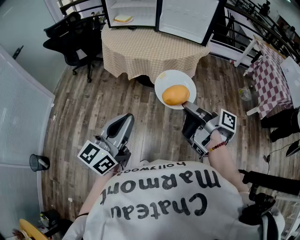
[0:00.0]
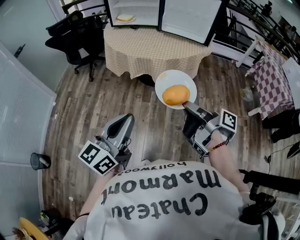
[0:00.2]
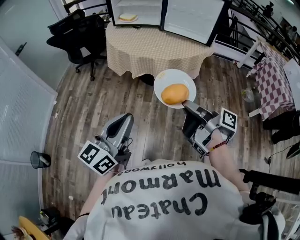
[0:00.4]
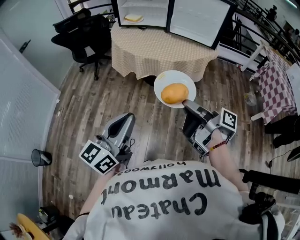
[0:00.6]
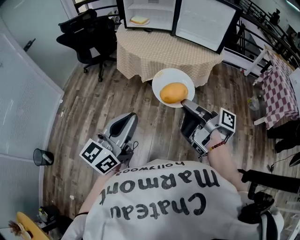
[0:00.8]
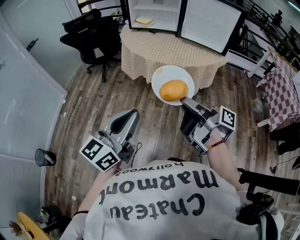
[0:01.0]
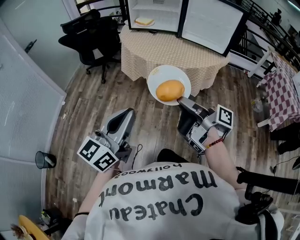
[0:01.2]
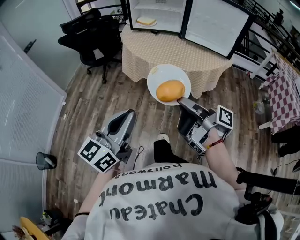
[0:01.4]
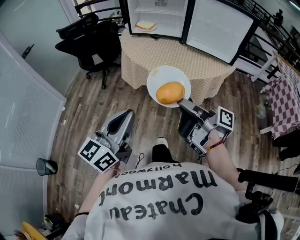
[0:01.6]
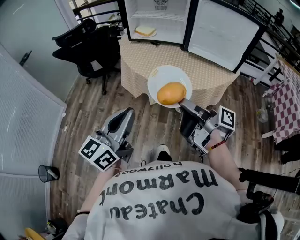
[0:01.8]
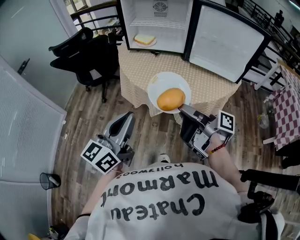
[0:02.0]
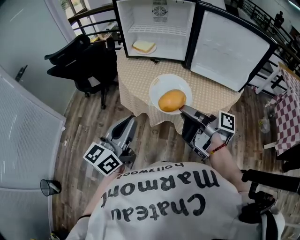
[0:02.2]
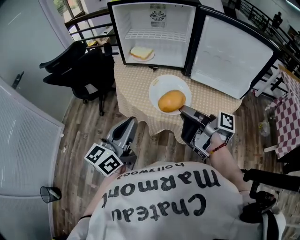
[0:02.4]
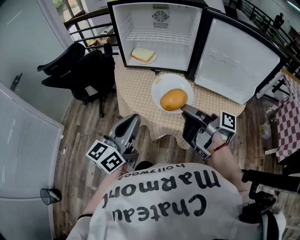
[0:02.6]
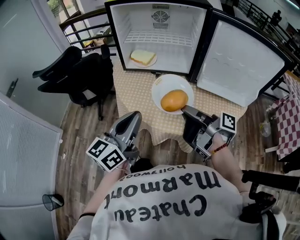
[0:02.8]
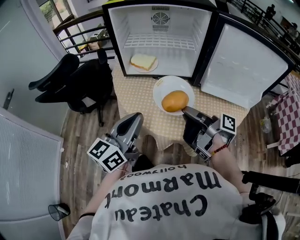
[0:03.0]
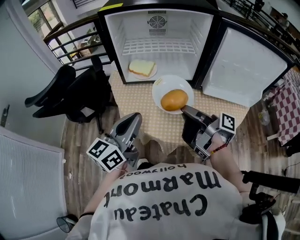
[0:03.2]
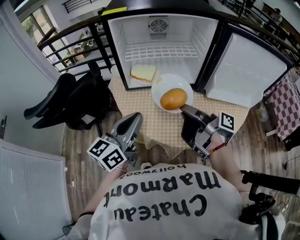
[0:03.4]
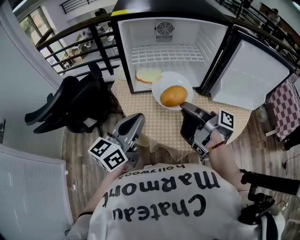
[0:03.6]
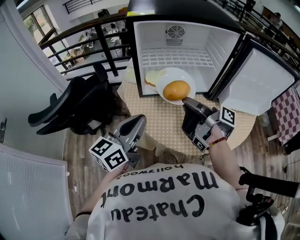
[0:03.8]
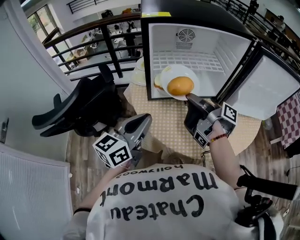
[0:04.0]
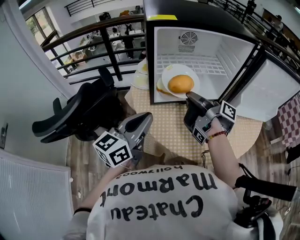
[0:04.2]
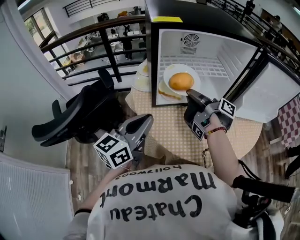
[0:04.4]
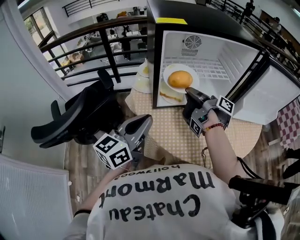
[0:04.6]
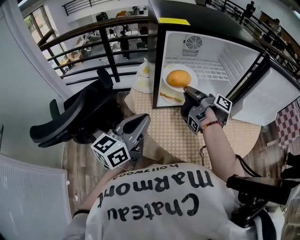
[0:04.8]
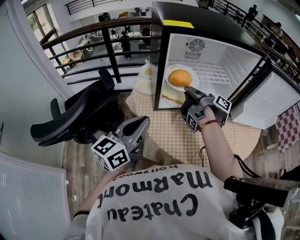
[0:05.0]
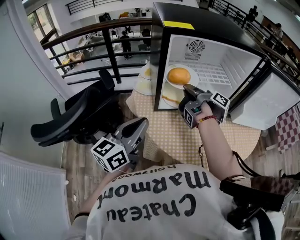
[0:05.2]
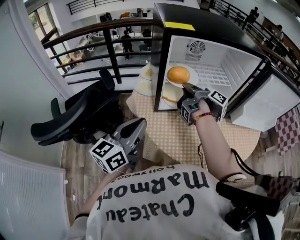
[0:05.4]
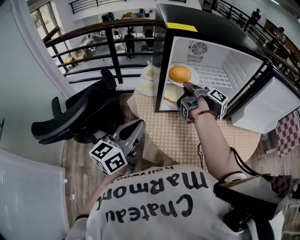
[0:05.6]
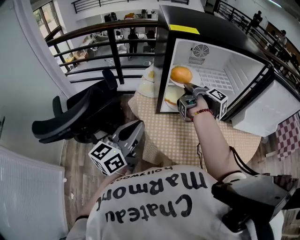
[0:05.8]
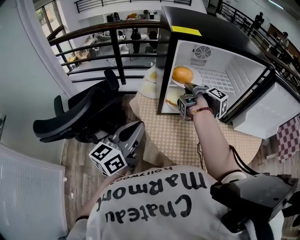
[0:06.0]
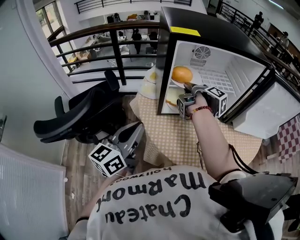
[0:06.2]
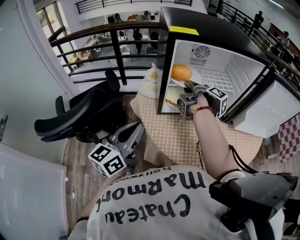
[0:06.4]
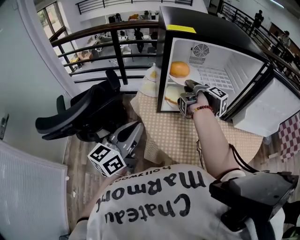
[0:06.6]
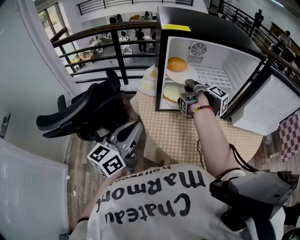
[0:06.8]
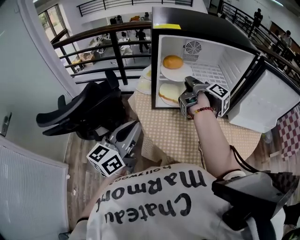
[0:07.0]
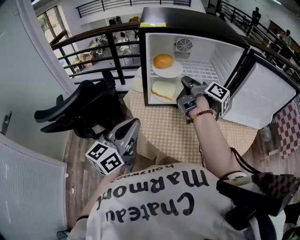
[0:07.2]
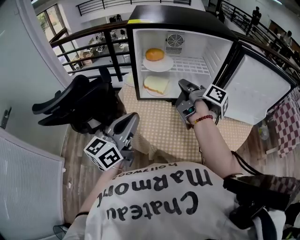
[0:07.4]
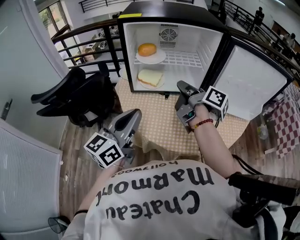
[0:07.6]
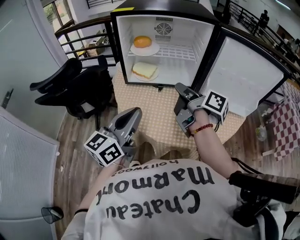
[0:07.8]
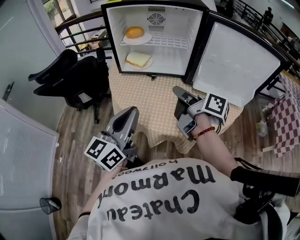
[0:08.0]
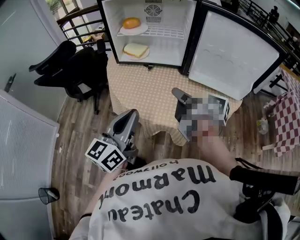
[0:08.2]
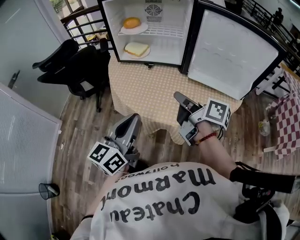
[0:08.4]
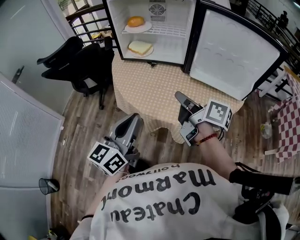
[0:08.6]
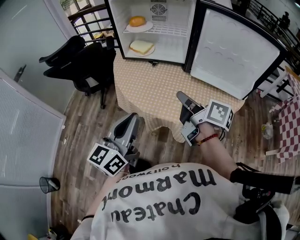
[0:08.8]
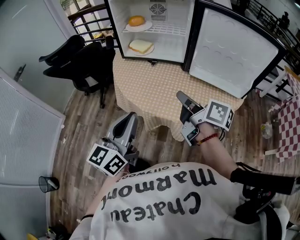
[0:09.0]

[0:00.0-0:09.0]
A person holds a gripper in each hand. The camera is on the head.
0:00.0 to 0:01.6: The left gripper changes place by roughly 15 cm.
0:01.6 to 0:03.0: The left gripper shifts by about 40 cm.
0:03.0 to 0:04.4: The left gripper moves approximately 25 cm.
0:04.4 to 0:06.0: The left gripper ends up about 5 cm from where it was.
0:06.0 to 0:07.6: The left gripper changes place by some 20 cm.
0:07.6 to 0:09.0: The left gripper ends up about 25 cm from where it was.

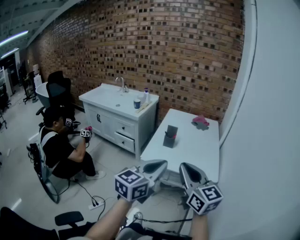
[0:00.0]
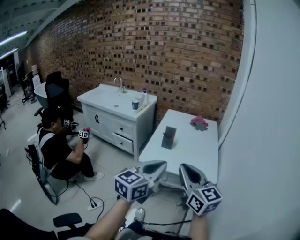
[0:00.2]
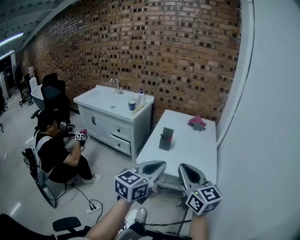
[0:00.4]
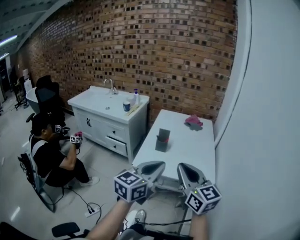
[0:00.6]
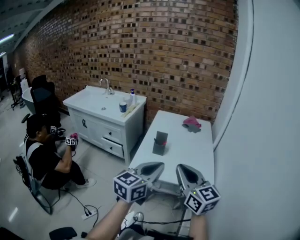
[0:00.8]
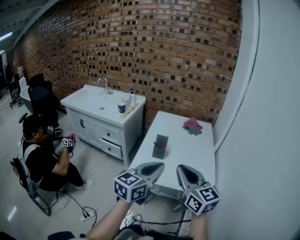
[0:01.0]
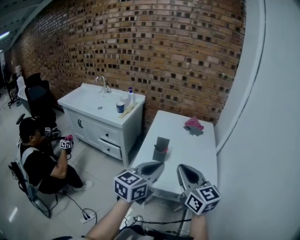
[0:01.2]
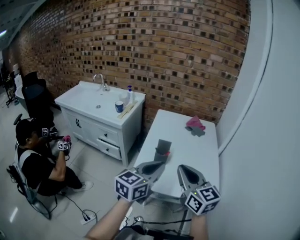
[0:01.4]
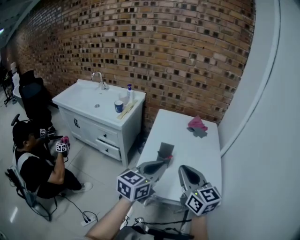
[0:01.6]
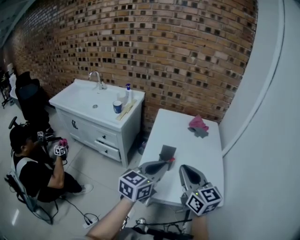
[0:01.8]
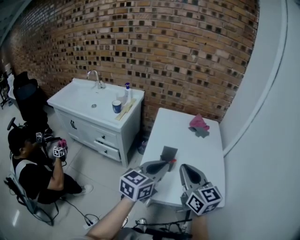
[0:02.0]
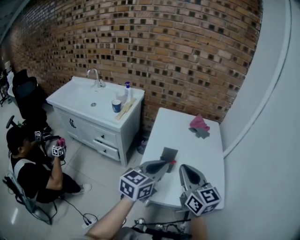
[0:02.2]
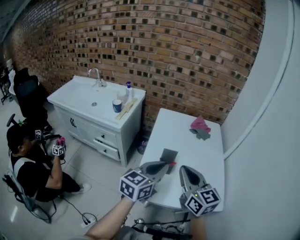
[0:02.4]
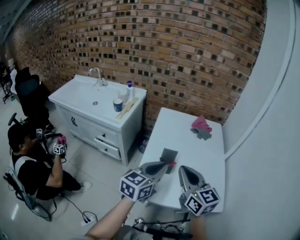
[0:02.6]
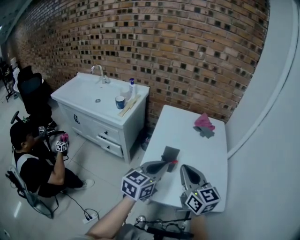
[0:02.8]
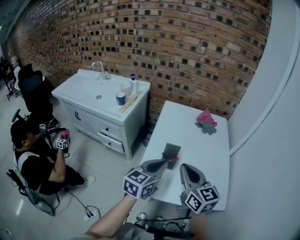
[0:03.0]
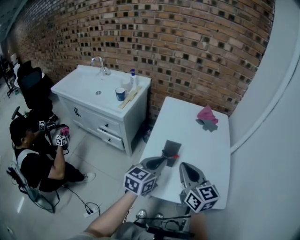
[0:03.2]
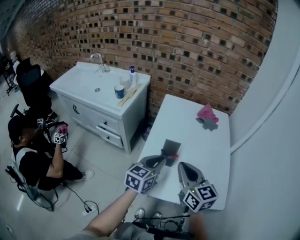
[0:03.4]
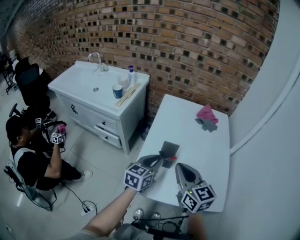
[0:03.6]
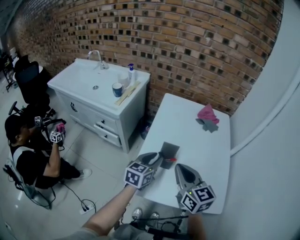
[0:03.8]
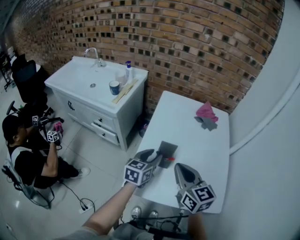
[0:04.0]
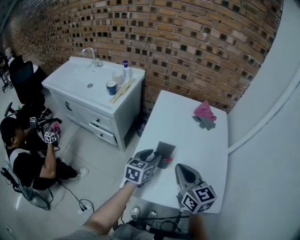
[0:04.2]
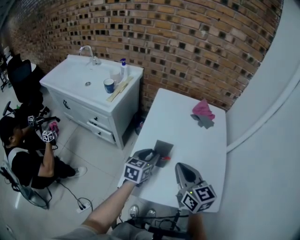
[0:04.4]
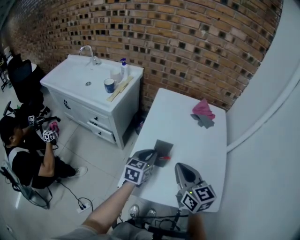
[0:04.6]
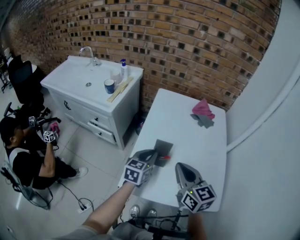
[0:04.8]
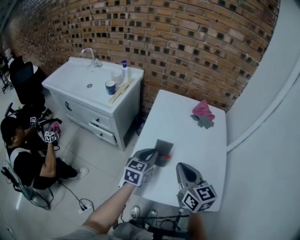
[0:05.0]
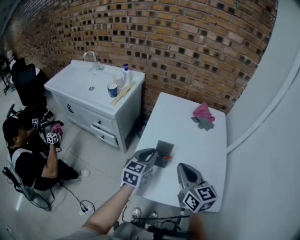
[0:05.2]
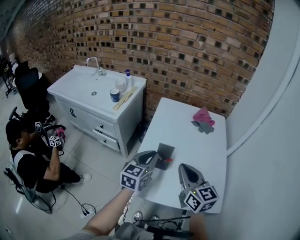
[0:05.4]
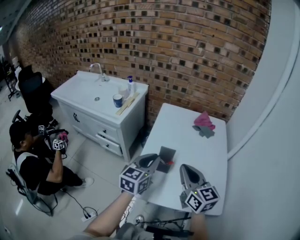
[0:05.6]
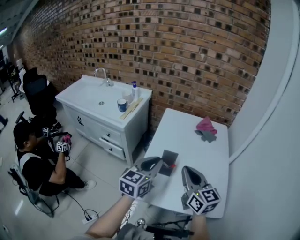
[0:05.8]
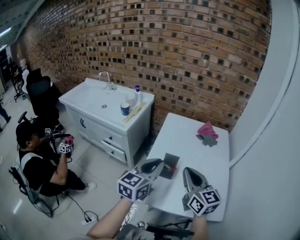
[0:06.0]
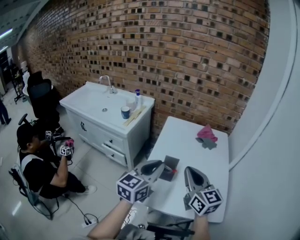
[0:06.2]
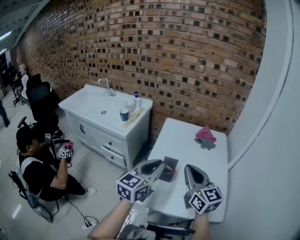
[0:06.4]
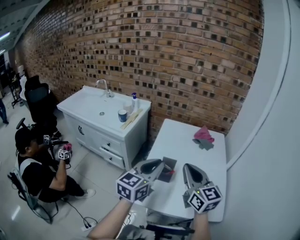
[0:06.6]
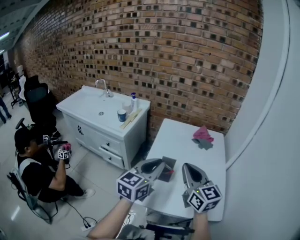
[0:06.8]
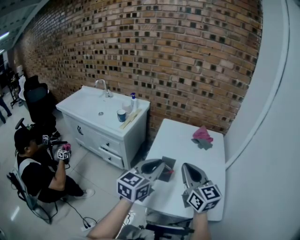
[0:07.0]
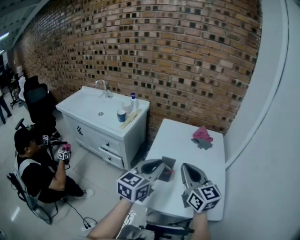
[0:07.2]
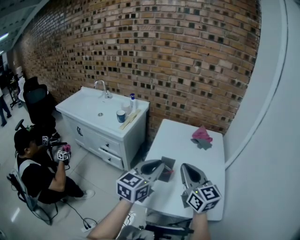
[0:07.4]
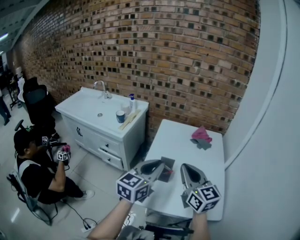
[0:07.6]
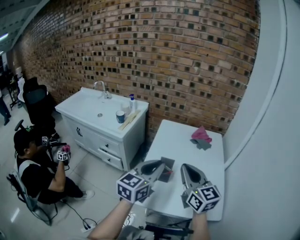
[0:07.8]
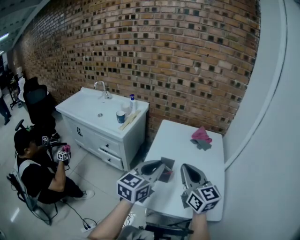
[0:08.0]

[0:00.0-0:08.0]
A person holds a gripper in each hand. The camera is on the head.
0:00.0 to 0:01.6: The two grippers go roughly 25 cm forward.
0:01.6 to 0:03.2: Both grippers move forward and downward, approximately 10 cm.
0:03.2 to 0:04.8: The right gripper ends up roughly 5 cm from where it was. Meanwhile the left gripper is displaced downward and forward by approximately 10 cm, and opens and closes again.
0:04.8 to 0:06.4: The left gripper goes roughly 20 cm upward and backward, and turns by approximately 20 degrees. Meanwhile the right gripper shifts roughly 10 cm upward.
0:06.4 to 0:08.0: The grippers stay close to where they were, moving slightly.

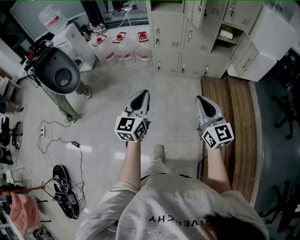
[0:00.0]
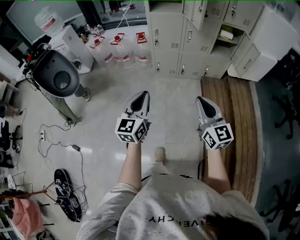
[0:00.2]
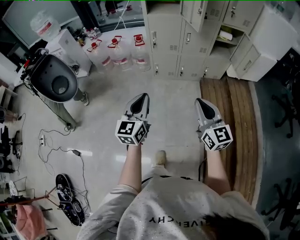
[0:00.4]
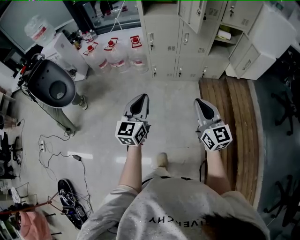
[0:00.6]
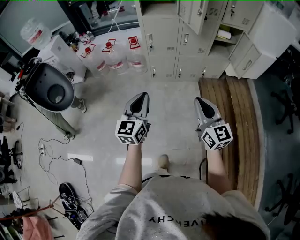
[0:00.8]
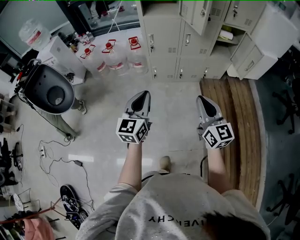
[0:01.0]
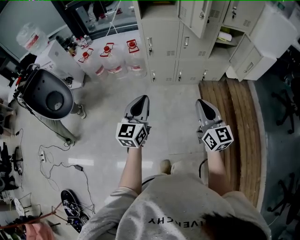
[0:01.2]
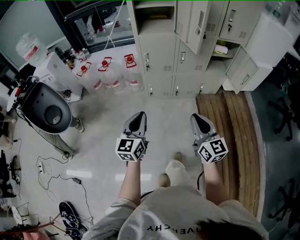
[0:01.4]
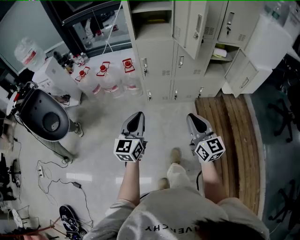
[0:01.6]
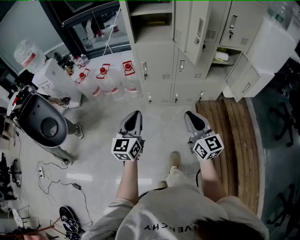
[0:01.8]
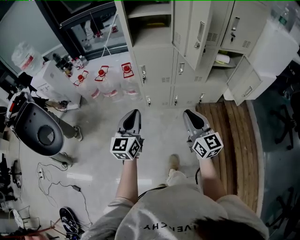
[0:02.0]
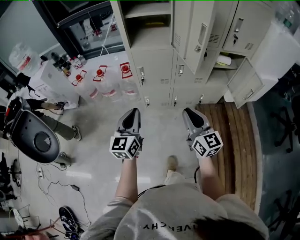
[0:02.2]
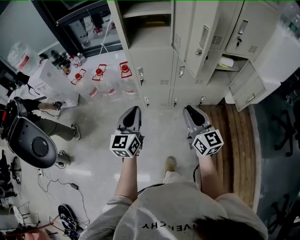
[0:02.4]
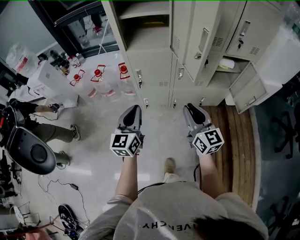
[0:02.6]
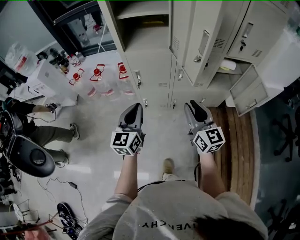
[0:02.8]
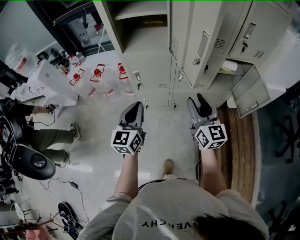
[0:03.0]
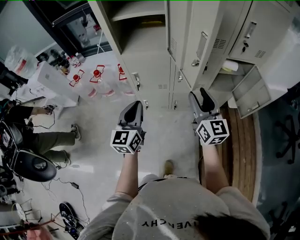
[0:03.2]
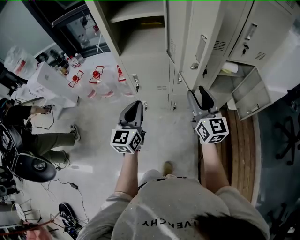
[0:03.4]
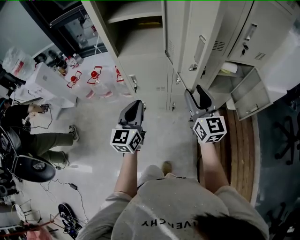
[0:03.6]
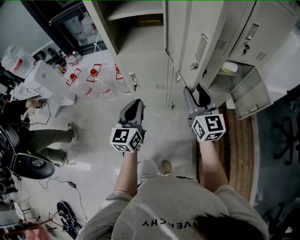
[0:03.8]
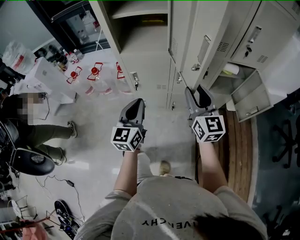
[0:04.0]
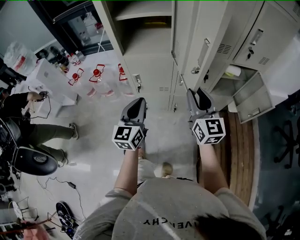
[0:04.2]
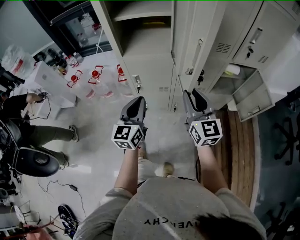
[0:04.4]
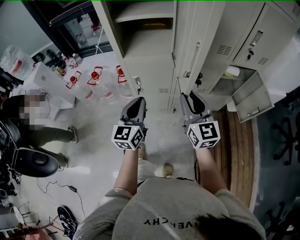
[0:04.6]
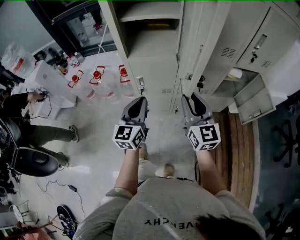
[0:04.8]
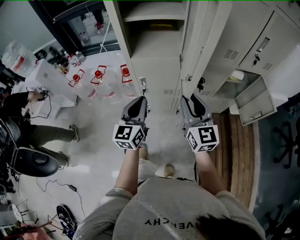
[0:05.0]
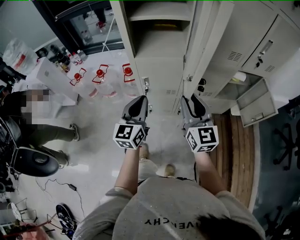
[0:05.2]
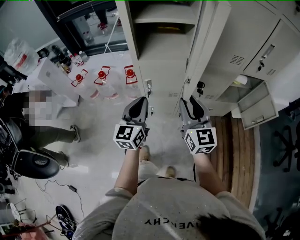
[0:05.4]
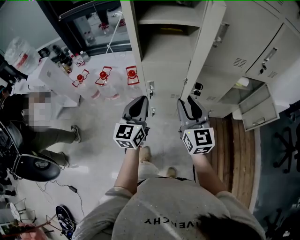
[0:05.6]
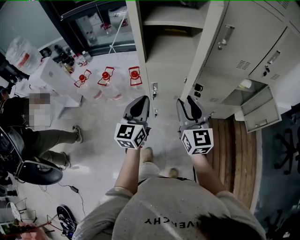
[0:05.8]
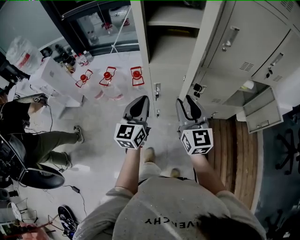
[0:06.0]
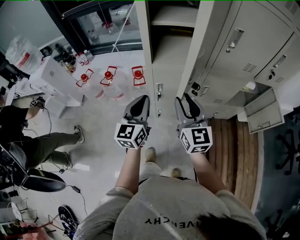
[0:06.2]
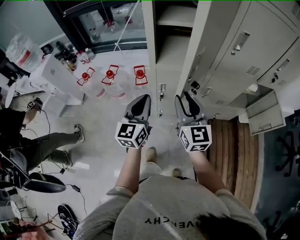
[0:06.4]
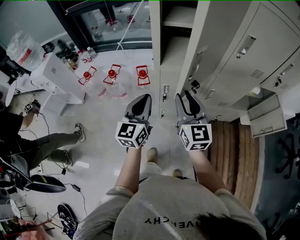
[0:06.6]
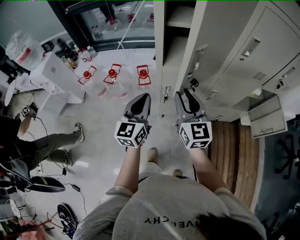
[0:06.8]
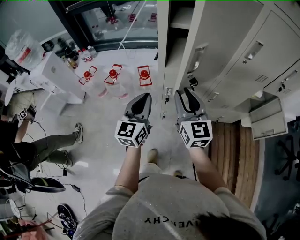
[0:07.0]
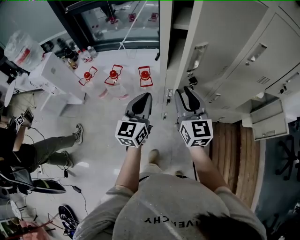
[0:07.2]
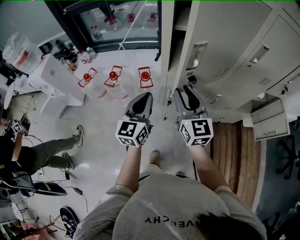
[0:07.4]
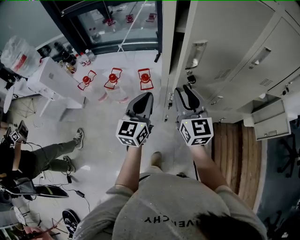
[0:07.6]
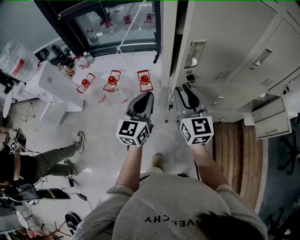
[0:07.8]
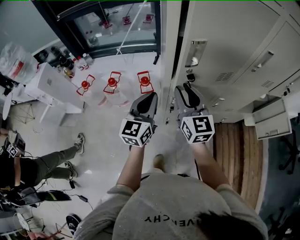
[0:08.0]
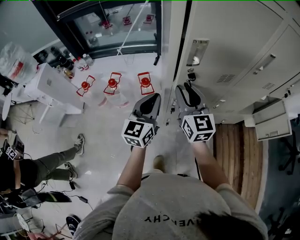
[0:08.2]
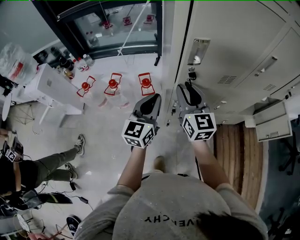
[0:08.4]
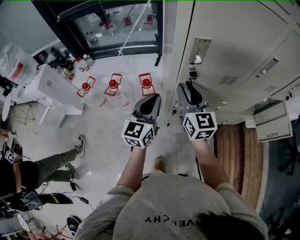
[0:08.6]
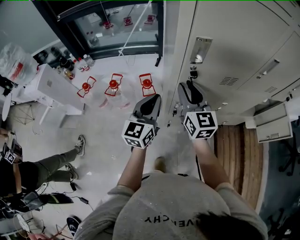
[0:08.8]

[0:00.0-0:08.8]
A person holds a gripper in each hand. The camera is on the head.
0:00.0 to 0:01.4: Both grippers travel together forward, approximately 20 cm.
0:01.4 to 0:03.0: Both grippers move forward, some 30 cm. The right gripper opens up.
0:03.0 to 0:04.4: Both grippers move forward, roughly 5 cm.
0:04.4 to 0:05.8: Both grippers travel together to the left, some 10 cm.
0:05.8 to 0:07.4: The two grippers go approximately 15 cm to the left and forward.
0:07.4 to 0:08.8: Both grippers move forward, about 10 cm.
